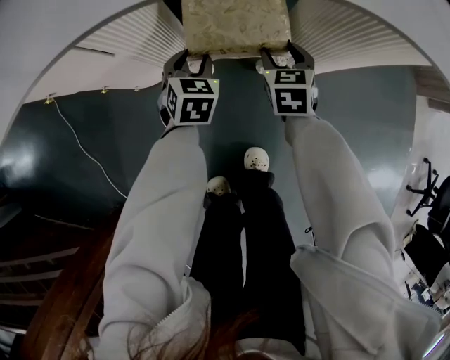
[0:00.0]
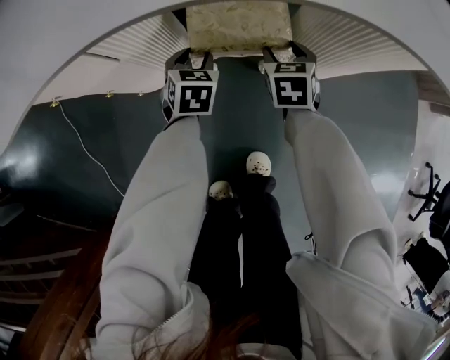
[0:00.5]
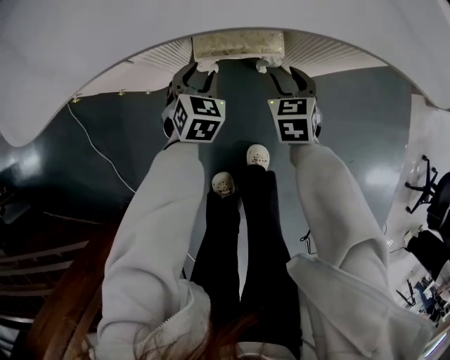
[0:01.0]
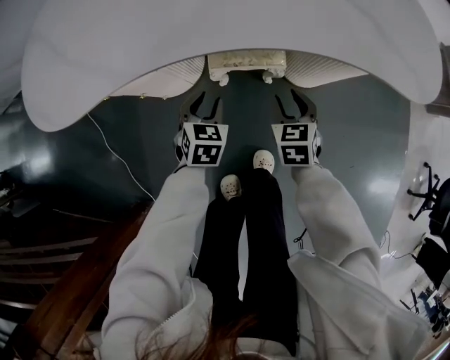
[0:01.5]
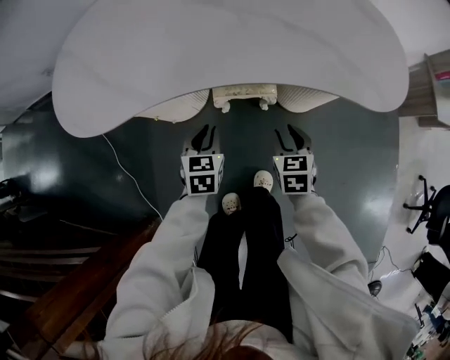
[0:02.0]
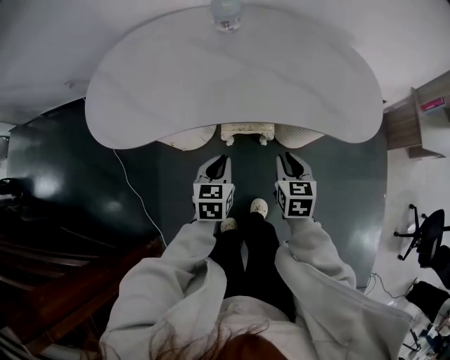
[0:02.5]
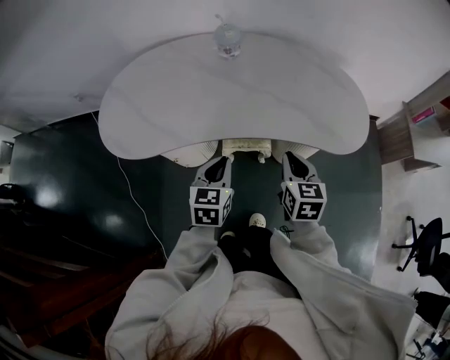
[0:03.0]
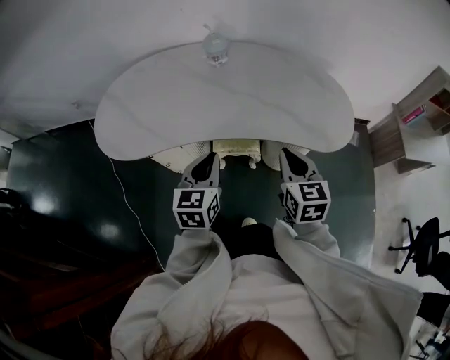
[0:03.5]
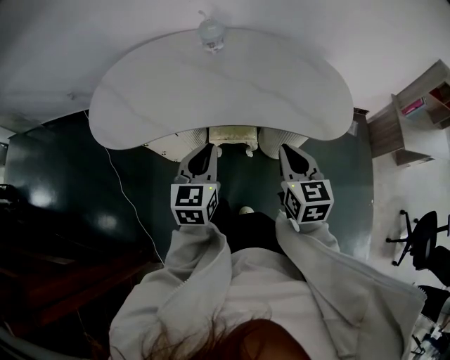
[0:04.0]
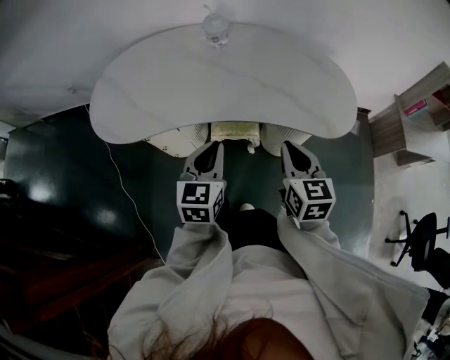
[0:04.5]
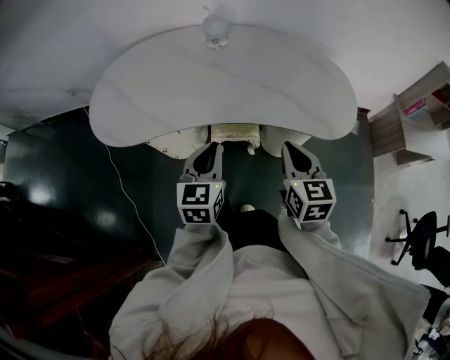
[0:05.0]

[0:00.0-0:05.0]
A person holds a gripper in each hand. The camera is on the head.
0:00.0 to 0:02.5: The two grippers go about 30 cm upward and backward. The left gripper closes up, while the right gripper closes its fingers.
0:02.5 to 0:05.0: The two grippers go about 15 cm upward.

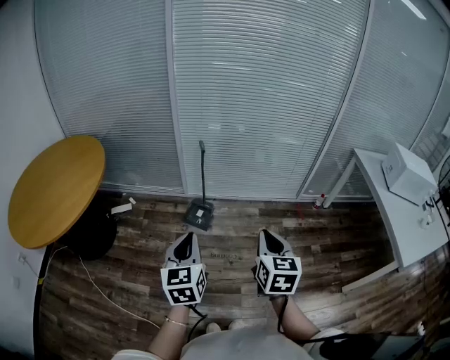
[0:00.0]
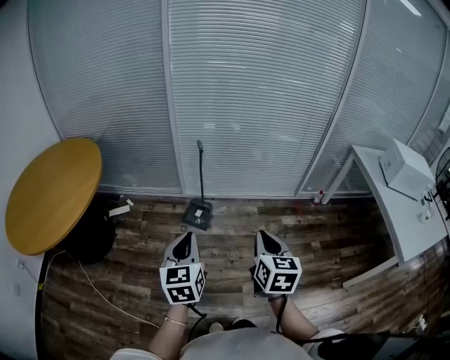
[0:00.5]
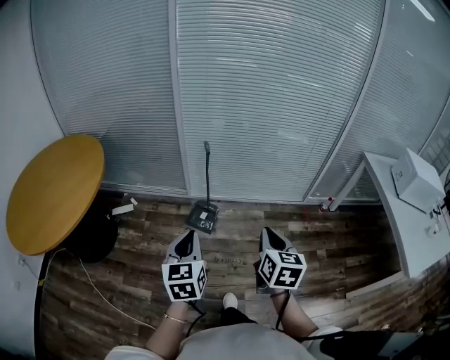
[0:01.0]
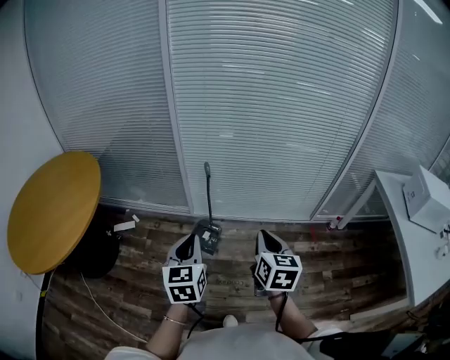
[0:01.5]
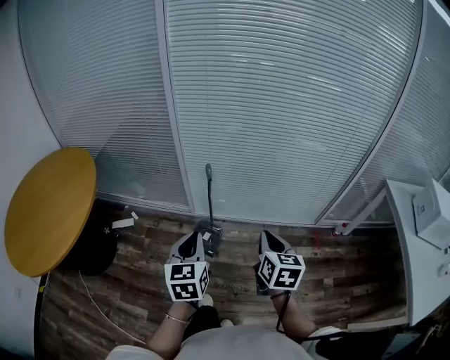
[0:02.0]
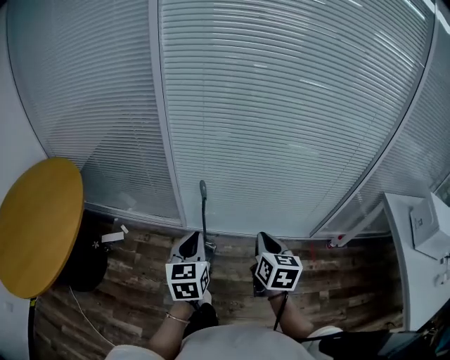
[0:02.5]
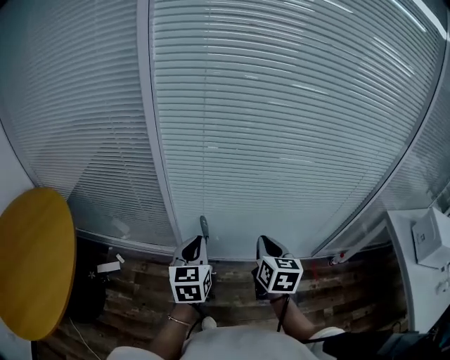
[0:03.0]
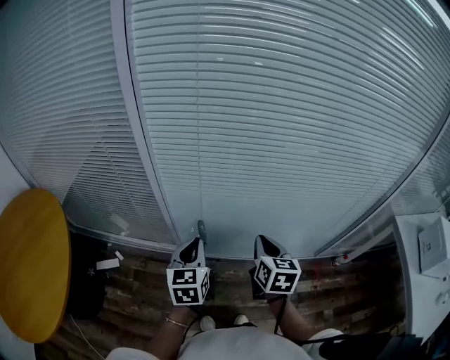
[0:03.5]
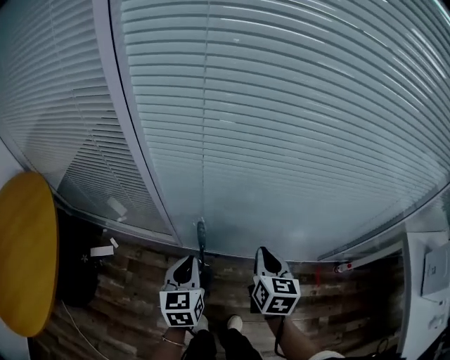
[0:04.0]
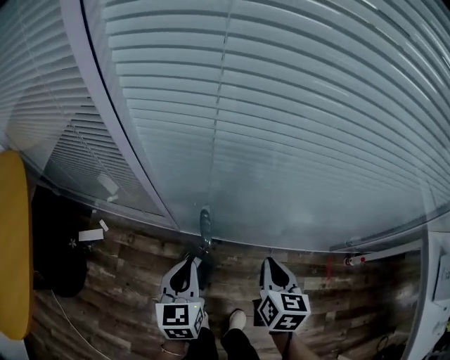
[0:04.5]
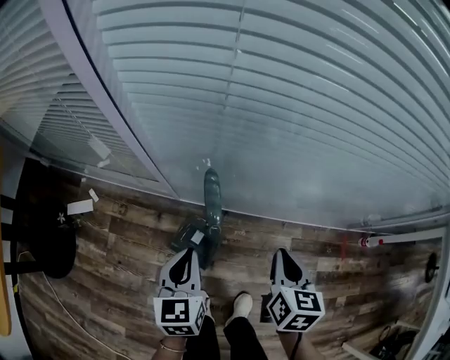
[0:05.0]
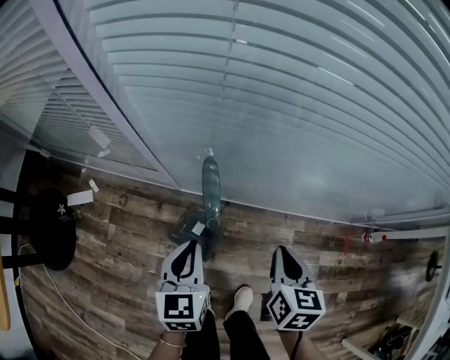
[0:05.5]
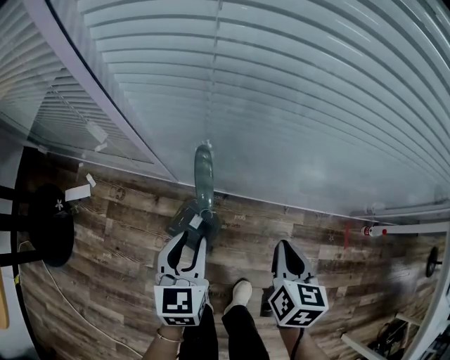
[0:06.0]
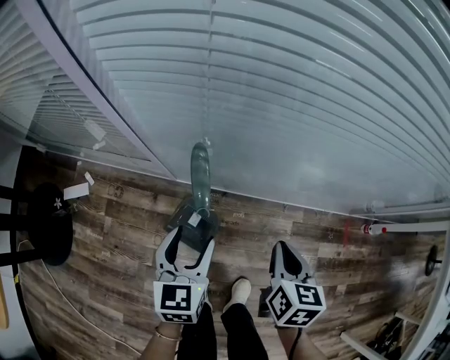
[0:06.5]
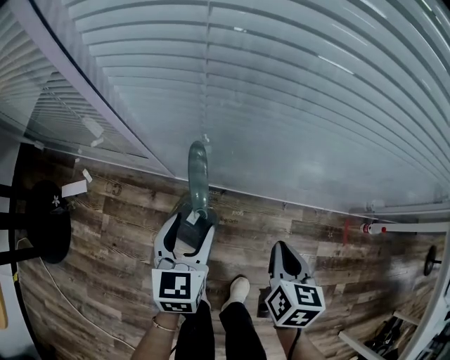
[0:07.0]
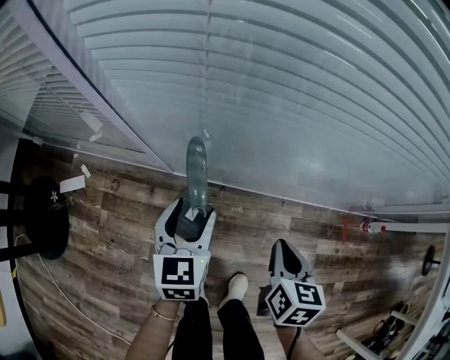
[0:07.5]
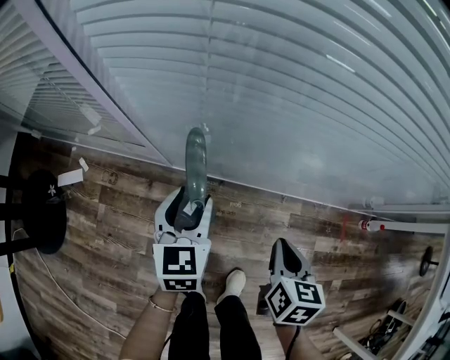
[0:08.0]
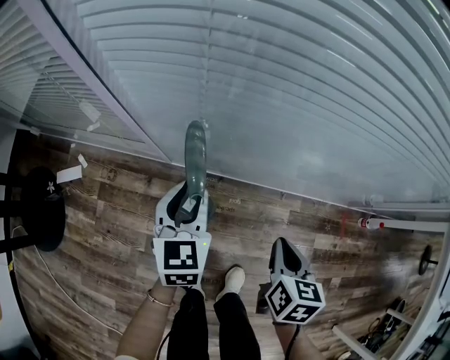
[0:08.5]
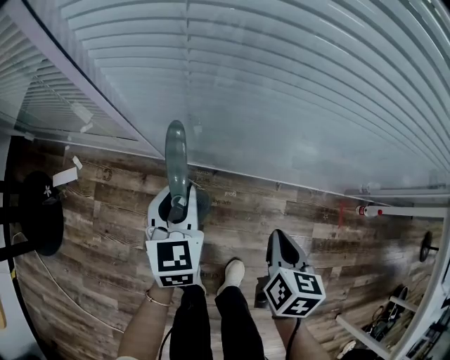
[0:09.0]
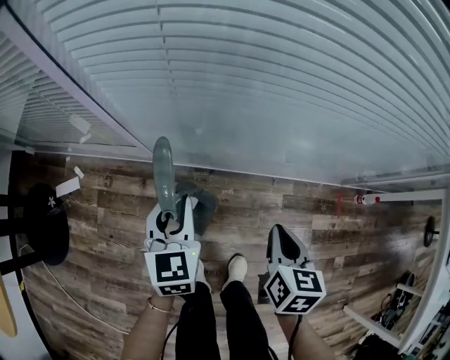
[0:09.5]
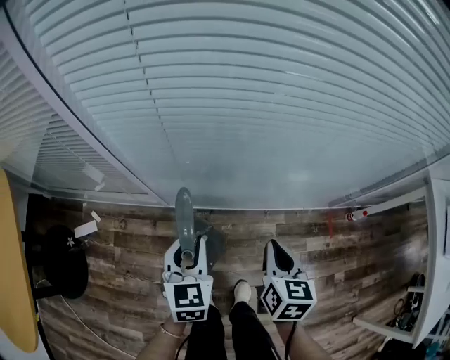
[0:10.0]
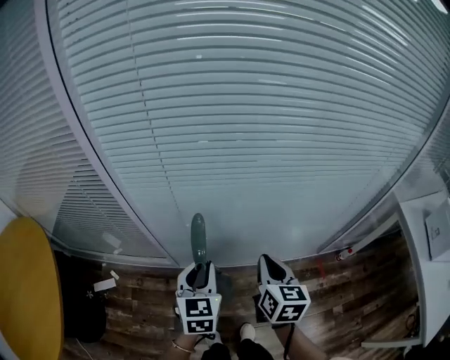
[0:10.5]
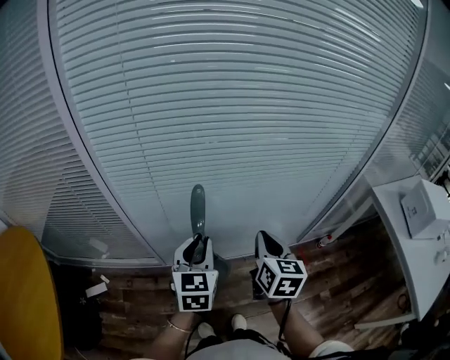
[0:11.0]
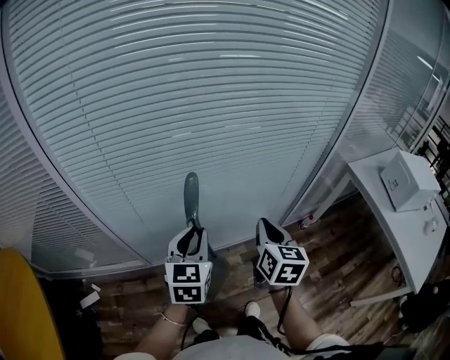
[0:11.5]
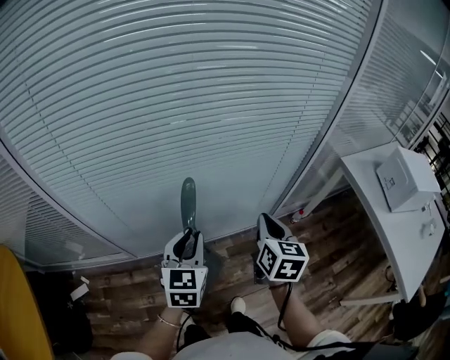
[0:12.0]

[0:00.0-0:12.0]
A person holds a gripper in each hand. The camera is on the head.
0:00.0 to 0:02.0: The grippers both shift forward by roughly 25 cm.
0:02.0 to 0:04.0: The two grippers go about 30 cm forward.
0:04.0 to 0:06.0: Both grippers travel together downward, approximately 25 cm. The left gripper opens.
0:06.0 to 0:08.0: The left gripper shifts about 5 cm forward.
0:08.0 to 0:10.0: The left gripper shifts roughly 15 cm upward and backward, and closes. The right gripper travels upward by roughly 15 cm.
0:10.0 to 0:12.0: The two grippers go some 30 cm to the right and upward. The left gripper swivels roughly 20 degrees, while the right gripper swivels some 20 degrees.

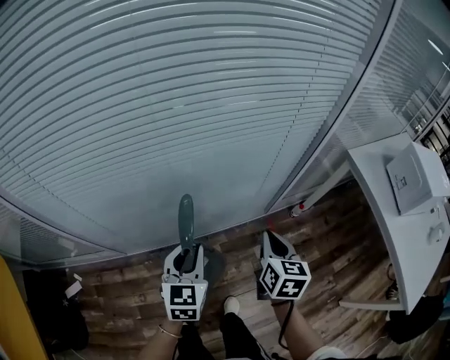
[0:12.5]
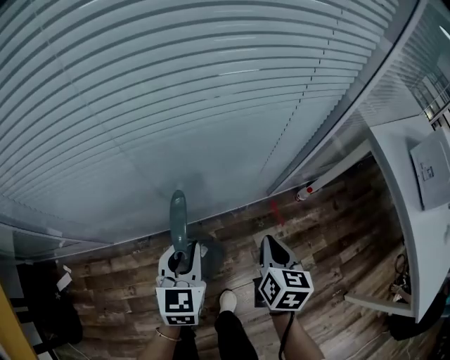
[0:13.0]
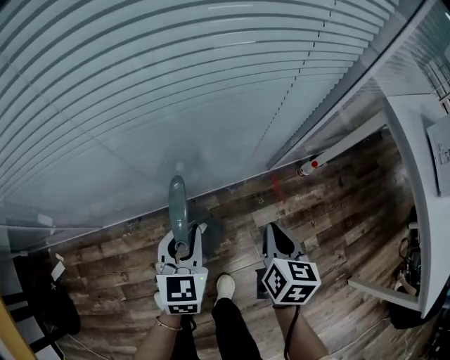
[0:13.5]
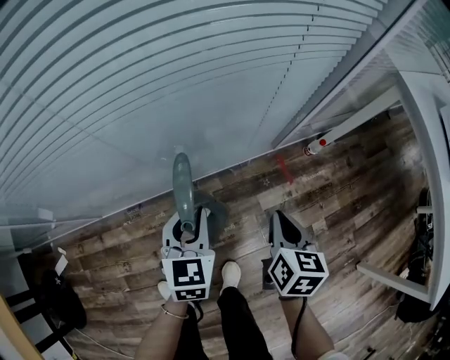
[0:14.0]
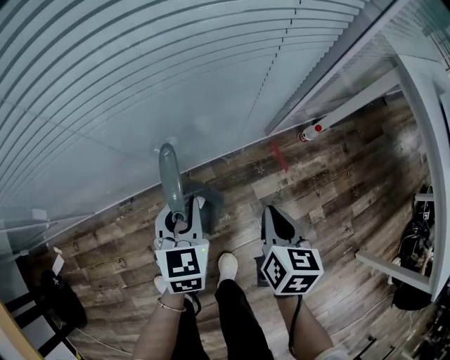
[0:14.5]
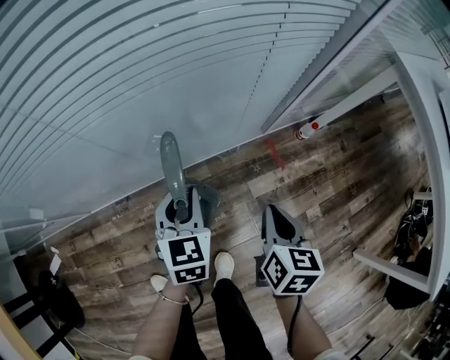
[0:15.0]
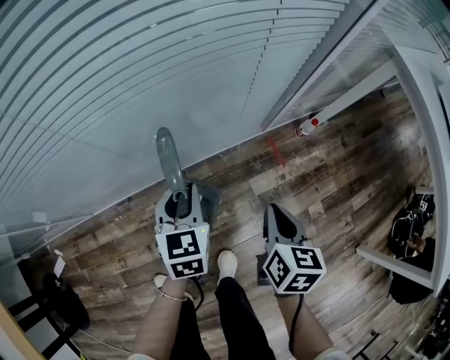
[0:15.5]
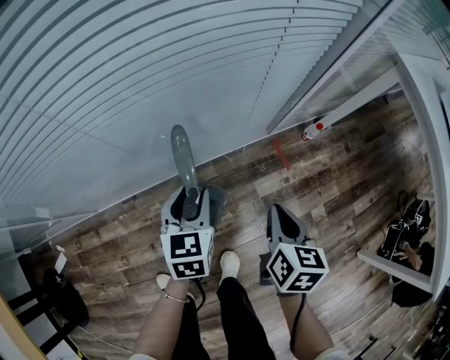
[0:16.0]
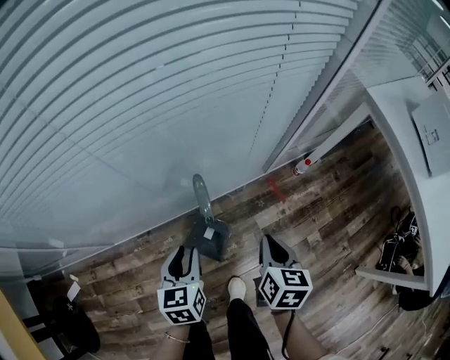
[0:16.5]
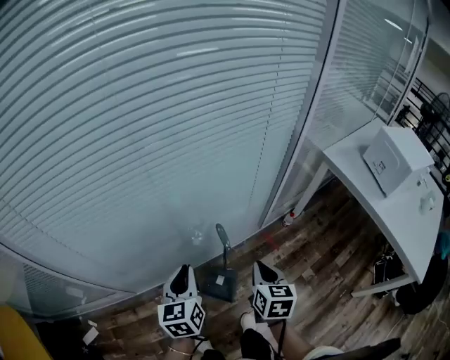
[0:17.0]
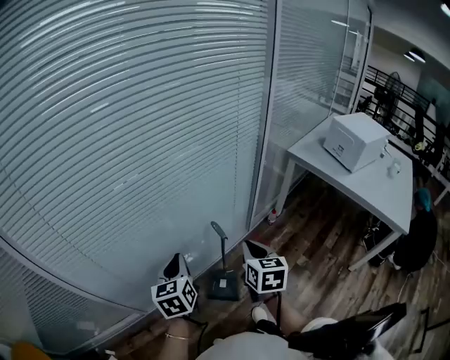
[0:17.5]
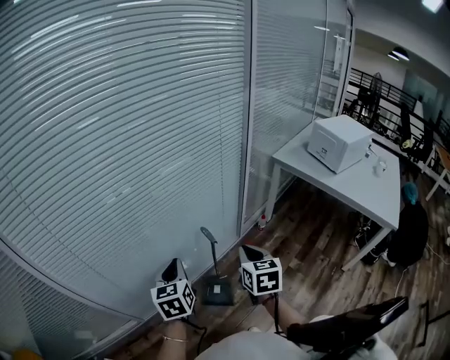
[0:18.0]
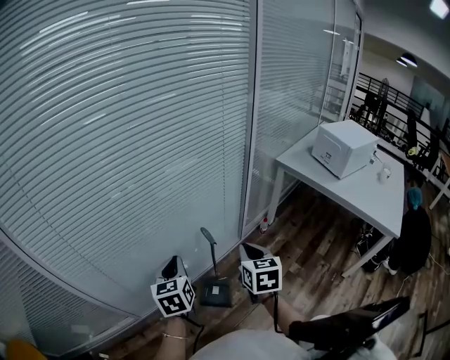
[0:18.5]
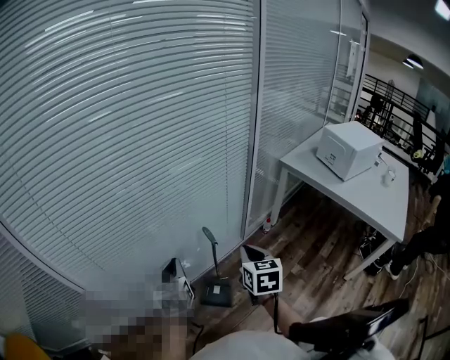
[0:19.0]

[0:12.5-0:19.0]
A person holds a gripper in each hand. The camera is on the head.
0:12.5 to 0:14.5: The grippers both shift downward by roughly 25 cm.
0:14.5 to 0:17.0: The right gripper travels upward by roughly 20 cm. The left gripper goes some 25 cm upward and to the left, and turns by about 20 degrees.
0:17.0 to 0:19.0: The right gripper shifts about 10 cm upward, while the left gripper is displaced upward by some 5 cm.

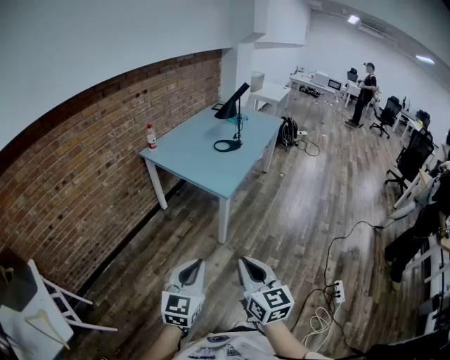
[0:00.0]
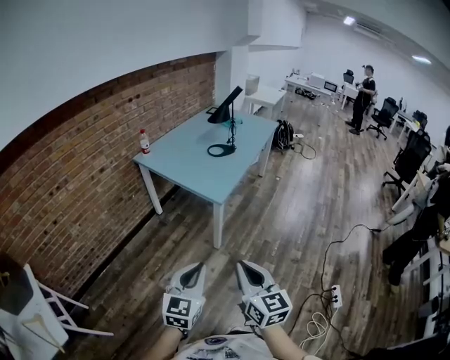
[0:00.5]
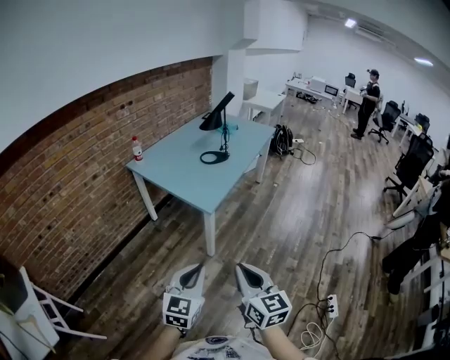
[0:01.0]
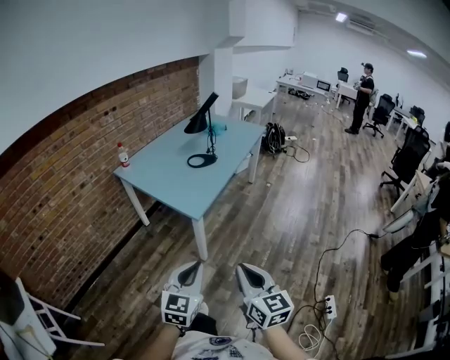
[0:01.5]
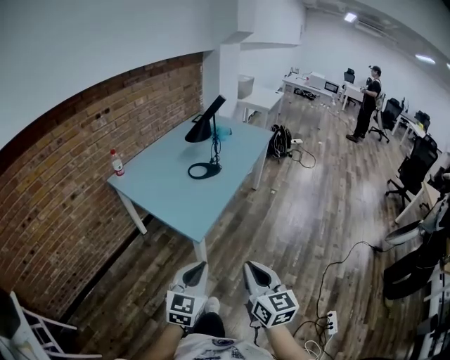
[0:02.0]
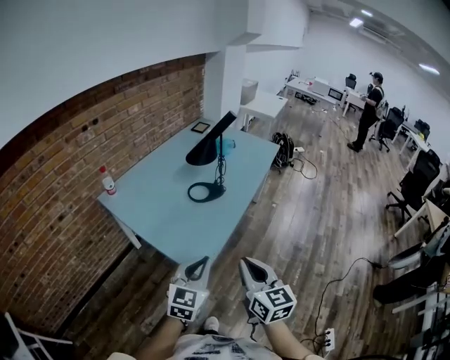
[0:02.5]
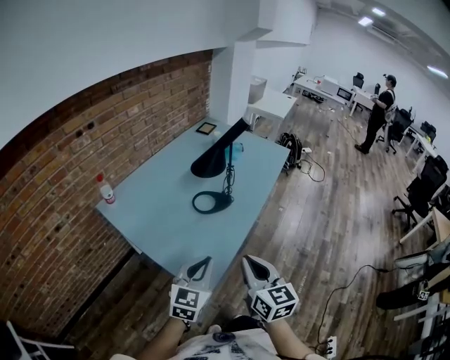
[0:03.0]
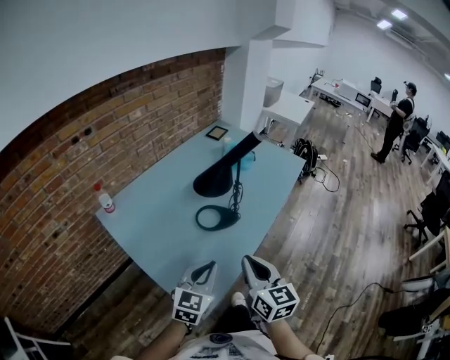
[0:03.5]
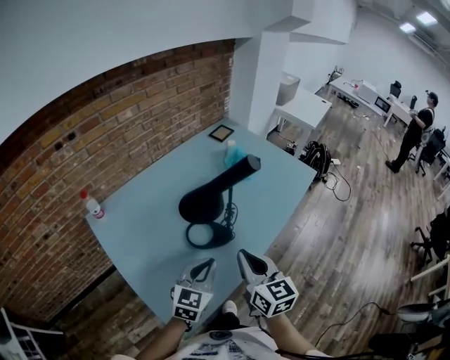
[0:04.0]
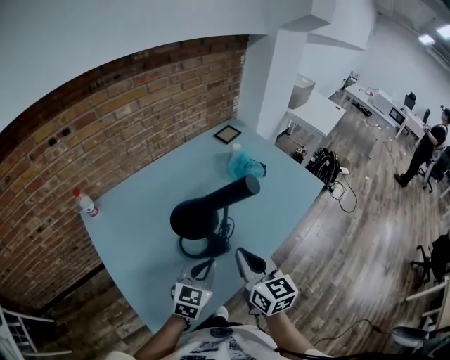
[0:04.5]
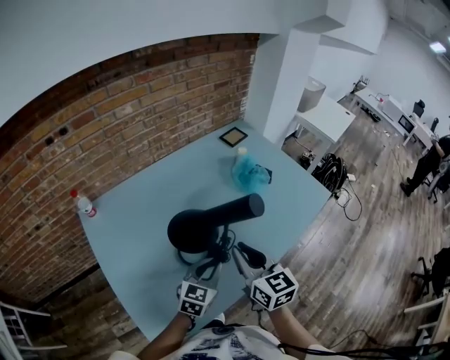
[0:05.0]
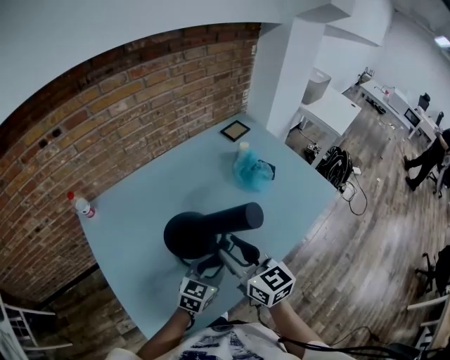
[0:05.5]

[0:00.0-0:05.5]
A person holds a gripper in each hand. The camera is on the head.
0:00.0 to 0:02.0: The grippers both shift forward and to the right by roughly 30 cm.
0:02.0 to 0:03.5: The pair of grippers is taken forward, about 40 cm.
0:03.5 to 0:05.5: The right gripper travels forward by about 30 cm, swivels about 30 degrees, and opens its fingers; the left gripper is displaced forward, to the right and downward by some 35 cm, and opens its fingers.
